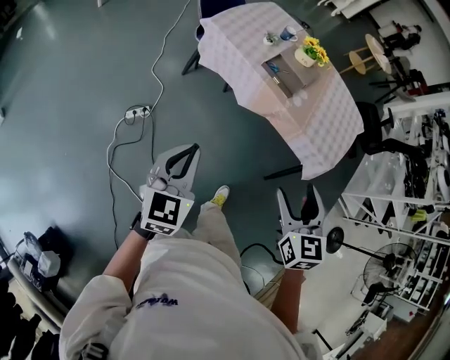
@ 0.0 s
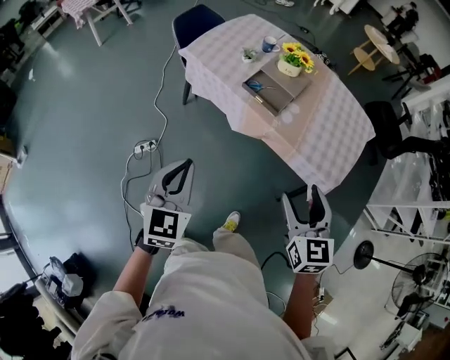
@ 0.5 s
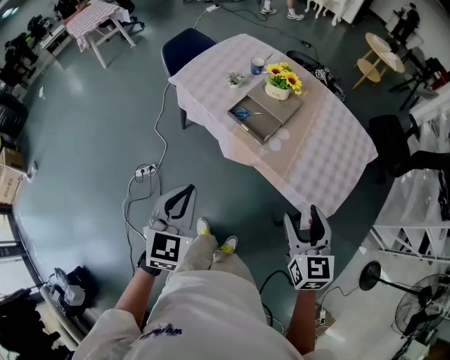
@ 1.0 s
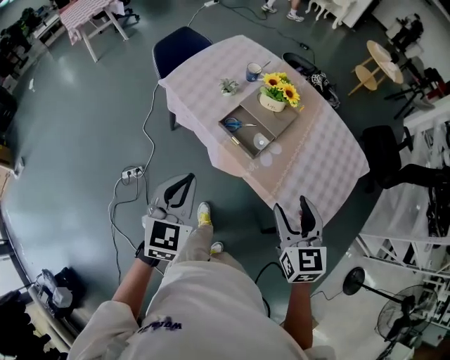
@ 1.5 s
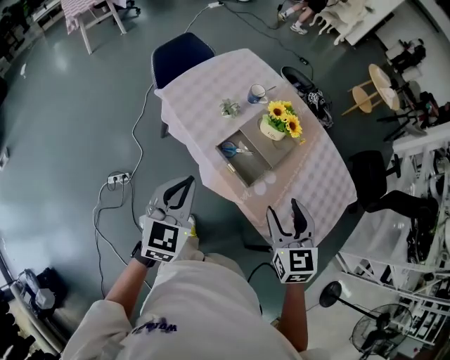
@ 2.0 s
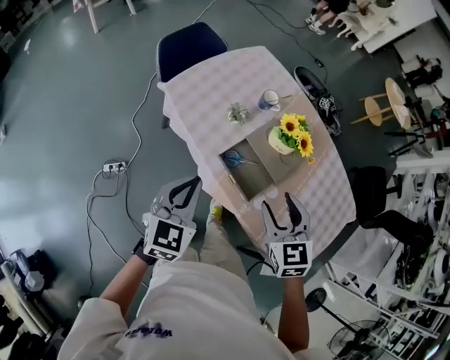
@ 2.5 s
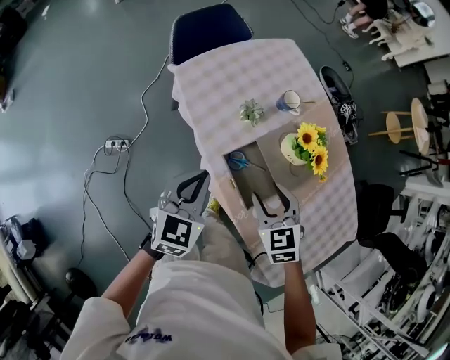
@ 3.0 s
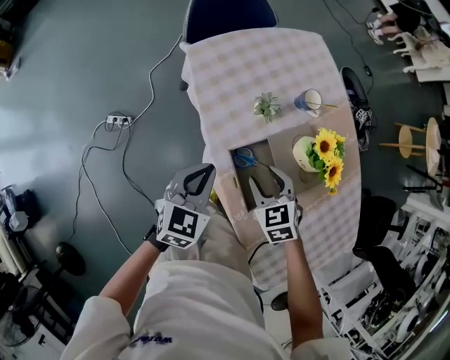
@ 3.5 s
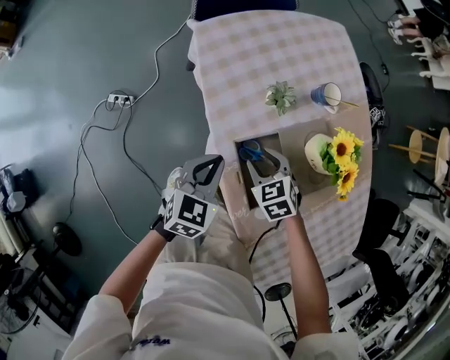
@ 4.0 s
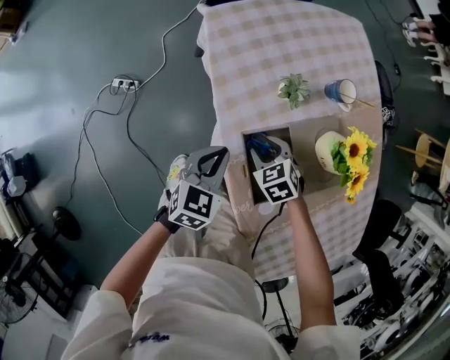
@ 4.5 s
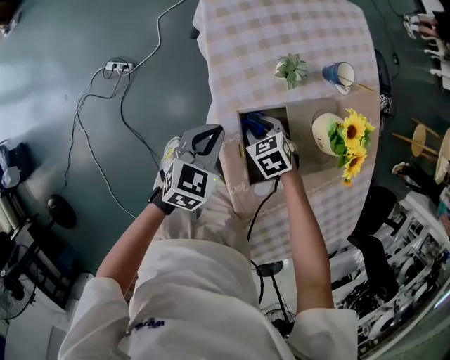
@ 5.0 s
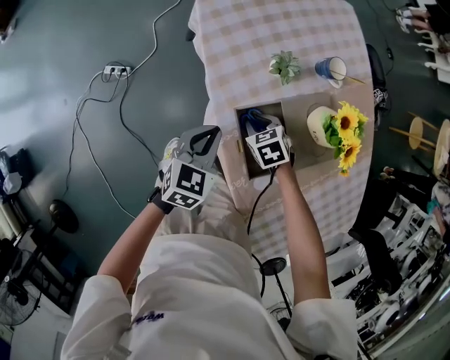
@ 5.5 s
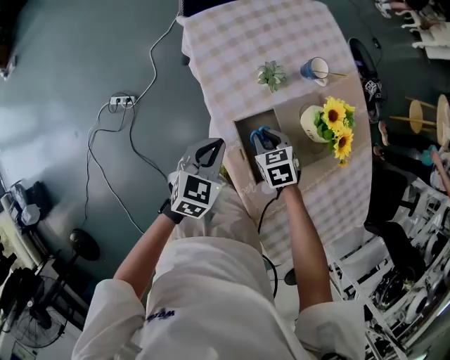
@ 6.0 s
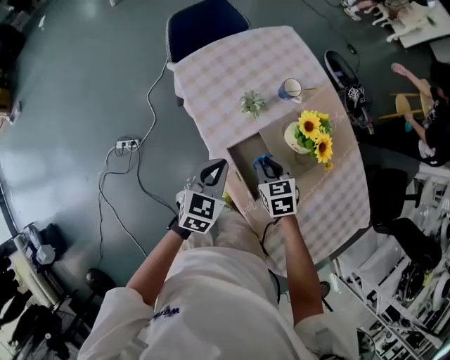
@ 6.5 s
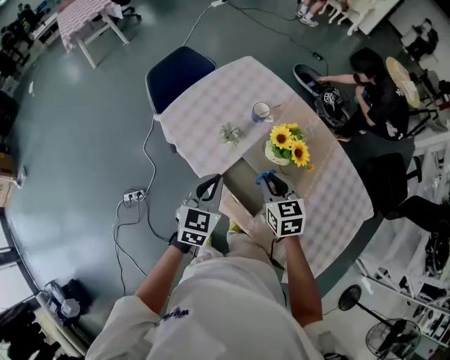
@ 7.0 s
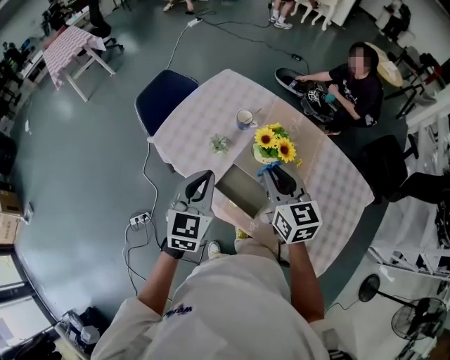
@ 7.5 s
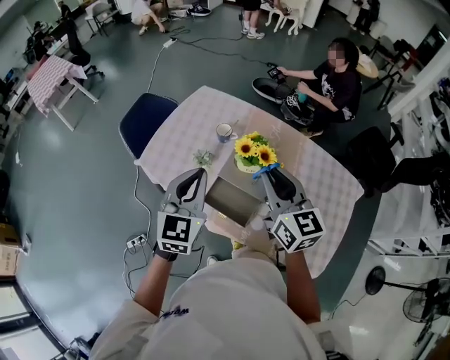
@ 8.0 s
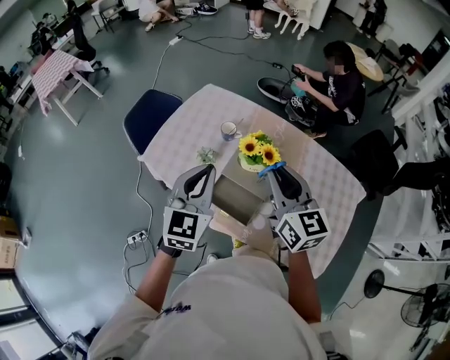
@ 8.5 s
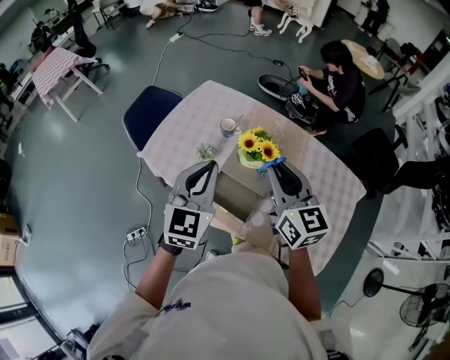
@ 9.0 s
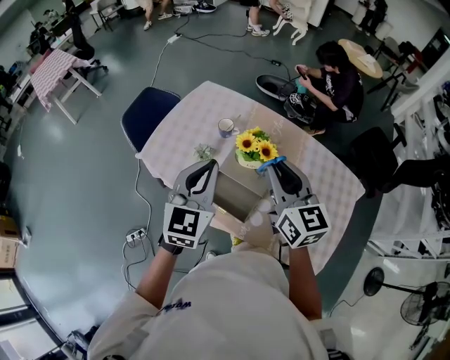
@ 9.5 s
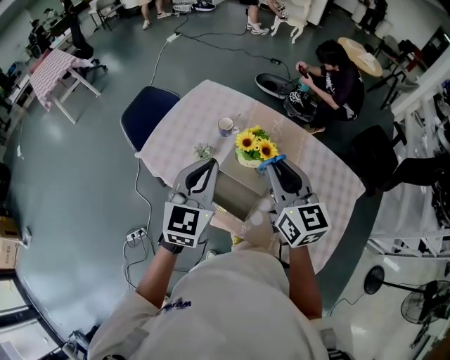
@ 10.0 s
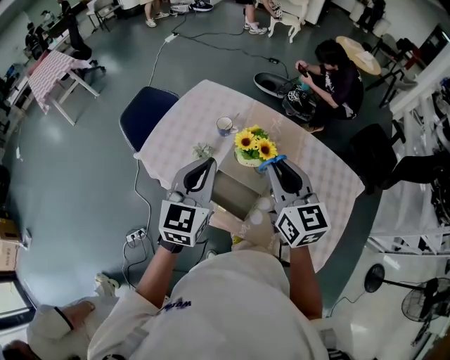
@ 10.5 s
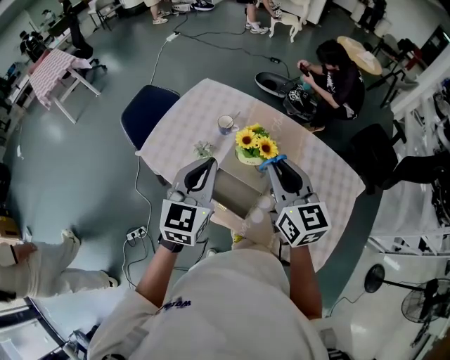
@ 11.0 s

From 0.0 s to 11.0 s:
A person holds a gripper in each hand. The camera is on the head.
From 0.0 s to 2.0 s: Both grippers are carried forward and to the right, about 40 cm.
From 2.0 s to 3.5 s: The grippers both shift downward and forward by roughly 25 cm. The right gripper changes its angle by some 40 degrees. Meanwhile the left gripper changes its angle by approximately 20 degrees.
From 3.5 s to 5.5 s: The left gripper moves downward, roughly 10 cm, while the right gripper moves downward, approximately 15 cm.
From 5.5 s to 7.5 s: The grippers both shift upward by approximately 35 cm. The left gripper turns by about 30 degrees. Meanwhile the right gripper tilts its fingers about 50 degrees upward.
From 7.5 s to 9.0 s: The left gripper heads upward and to the right, covering approximately 10 cm. Meanwhile the right gripper is displaced upward by some 5 cm.
From 9.0 s to 11.0 s: The grippers stay close to where they were, moving slightly.

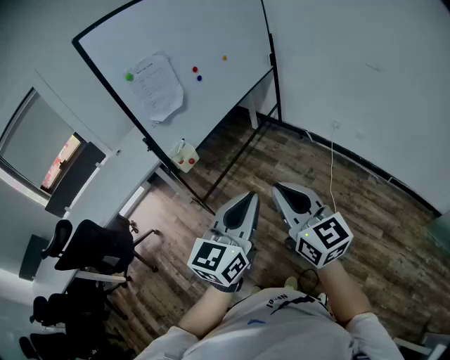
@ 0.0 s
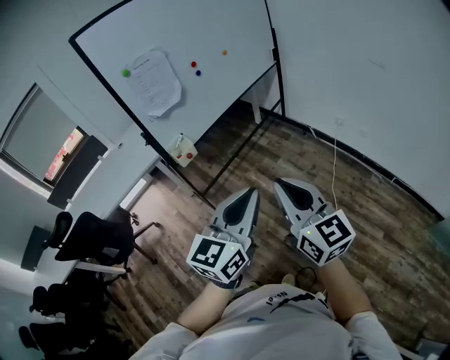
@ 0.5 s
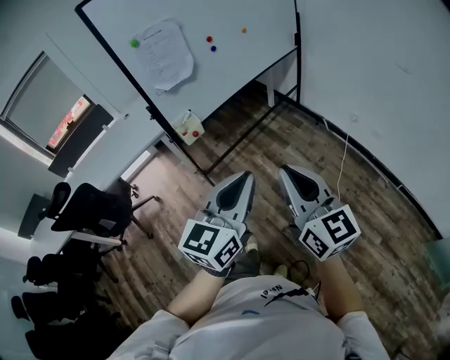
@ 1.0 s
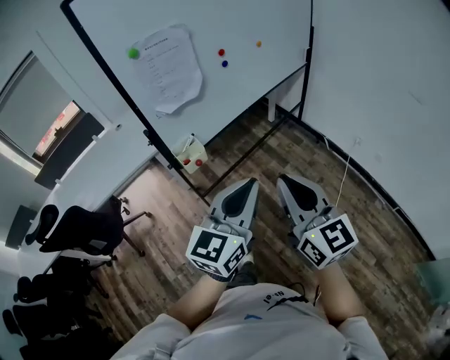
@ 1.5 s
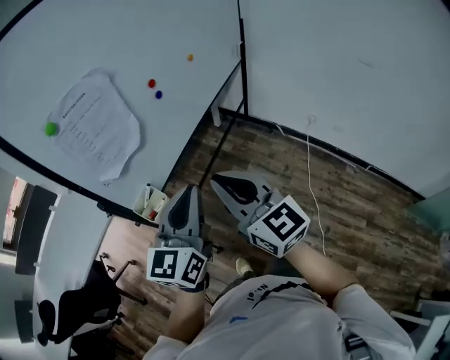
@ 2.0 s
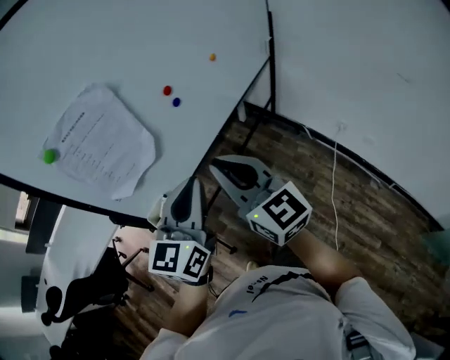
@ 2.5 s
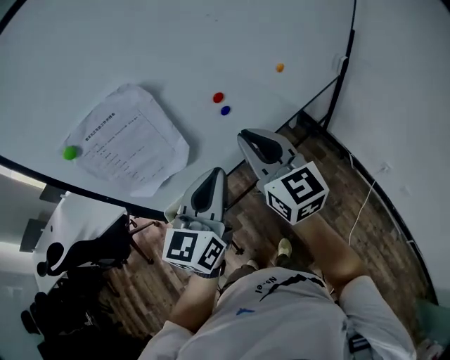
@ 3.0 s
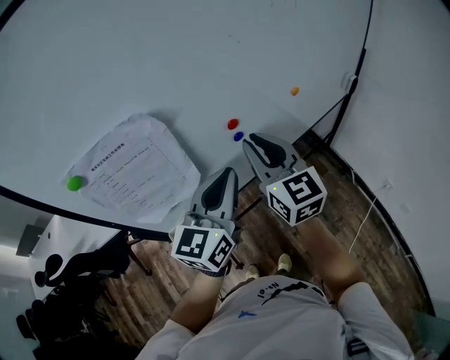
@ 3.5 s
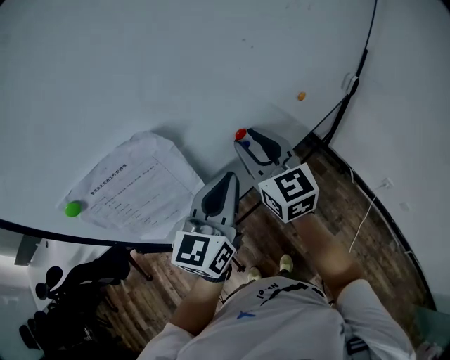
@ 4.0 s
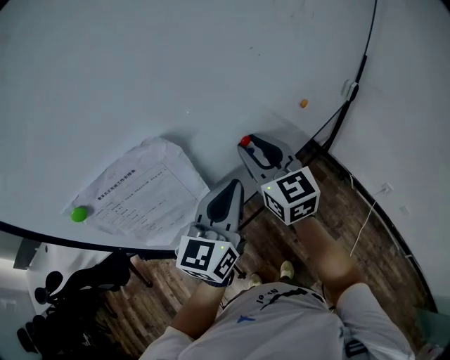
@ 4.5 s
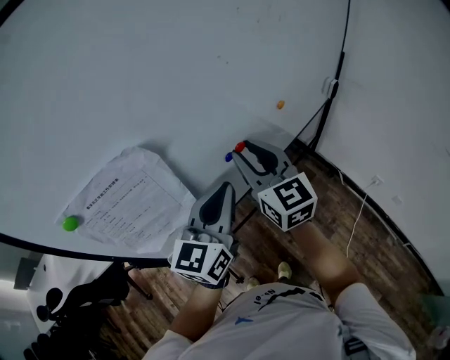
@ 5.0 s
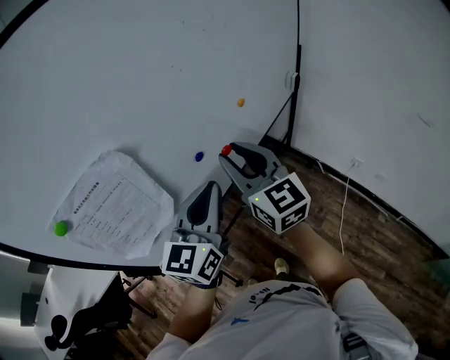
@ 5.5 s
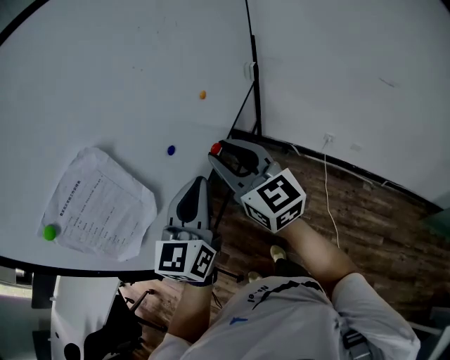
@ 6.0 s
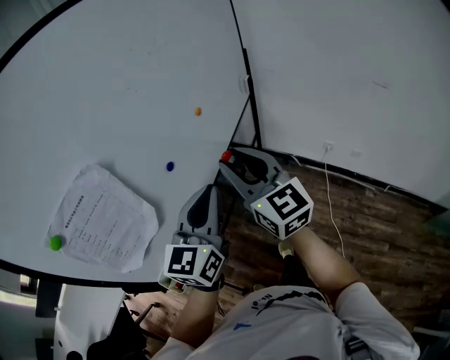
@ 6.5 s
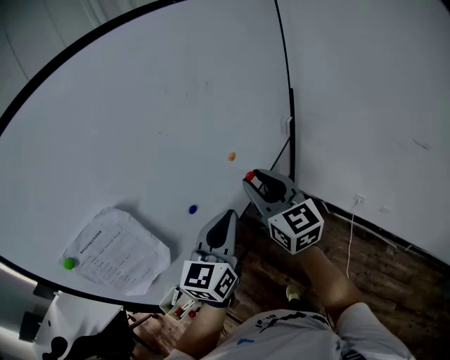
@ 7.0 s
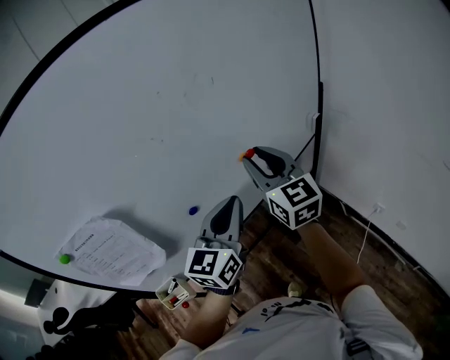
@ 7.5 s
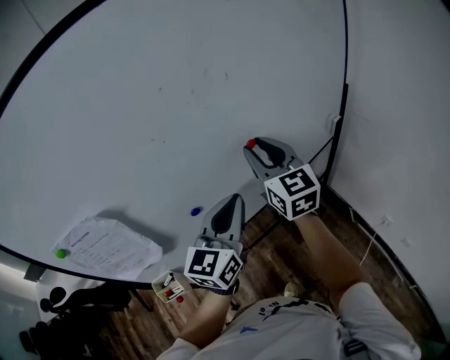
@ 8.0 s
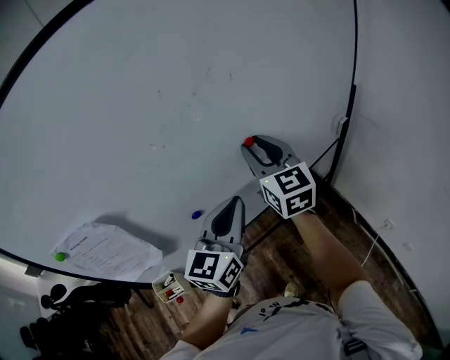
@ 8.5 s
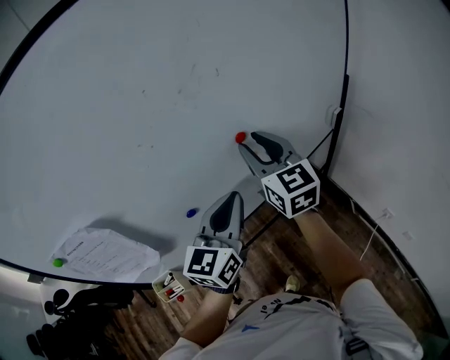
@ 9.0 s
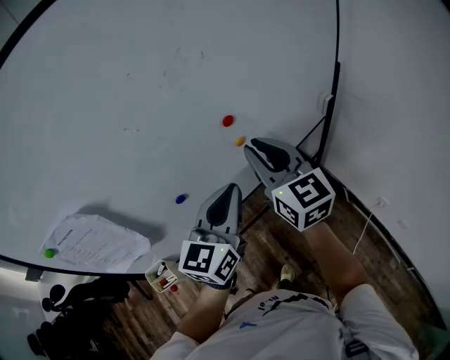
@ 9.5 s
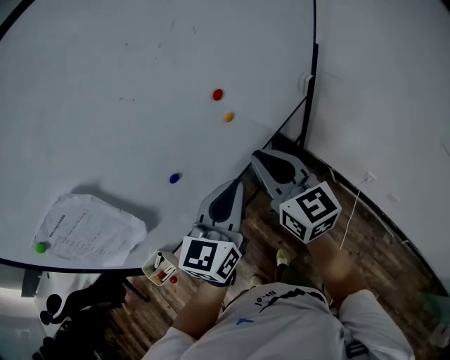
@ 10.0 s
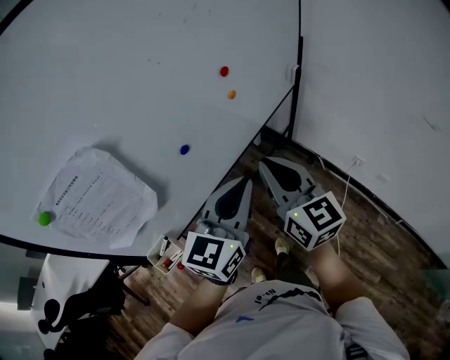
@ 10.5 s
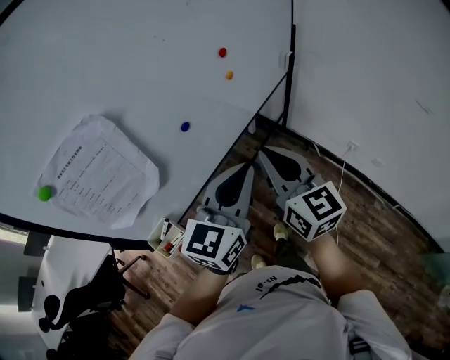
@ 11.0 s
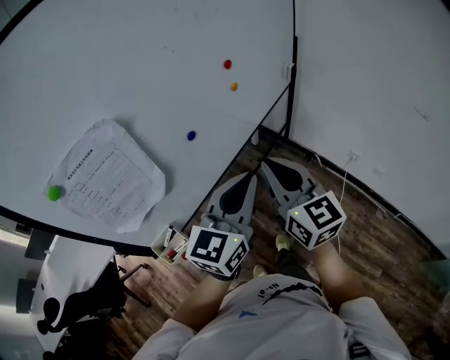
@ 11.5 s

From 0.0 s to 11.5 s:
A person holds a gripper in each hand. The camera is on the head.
From 0.0 s to 2.0 s: Both grippers move forward, roughly 30 cm.
From 2.0 s to 4.0 s: The two grippers go about 35 cm forward. The right gripper opens up.
From 4.0 s to 6.0 s: The right gripper heads backward and to the right, covering roughly 15 cm; the left gripper moves backward and to the right, about 10 cm.
From 6.0 s to 7.5 s: The left gripper is displaced forward and to the right by approximately 15 cm, while the right gripper shifts some 20 cm forward.
From 7.5 s to 9.5 s: The right gripper goes forward and returns, some 10 cm each way.
From 9.5 s to 11.5 s: Both grippers travel together backward, roughly 20 cm. The left gripper changes its angle by roughly 20 degrees.

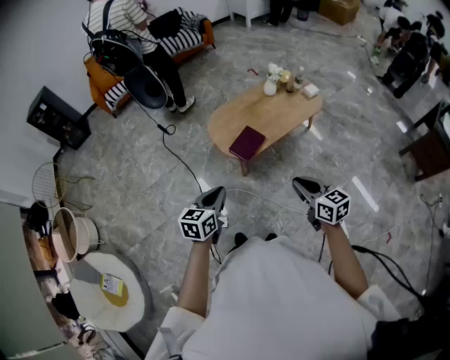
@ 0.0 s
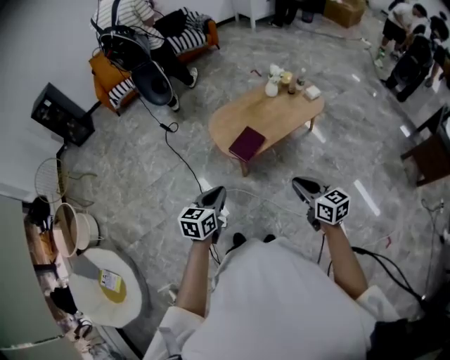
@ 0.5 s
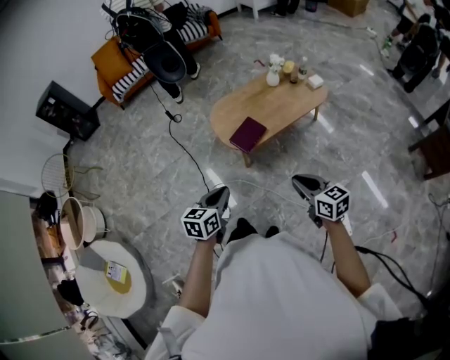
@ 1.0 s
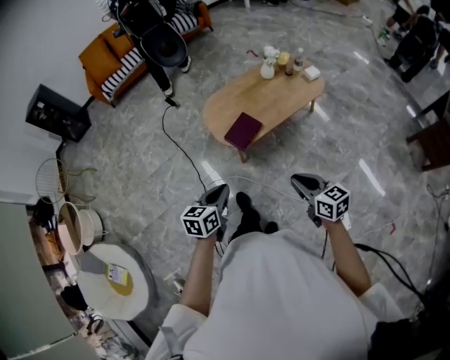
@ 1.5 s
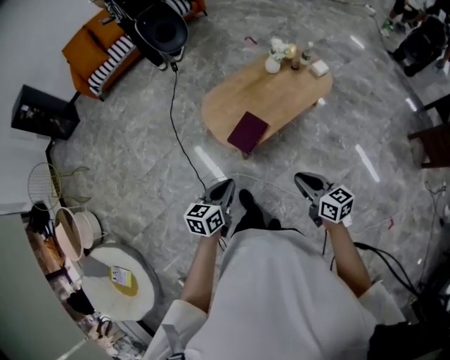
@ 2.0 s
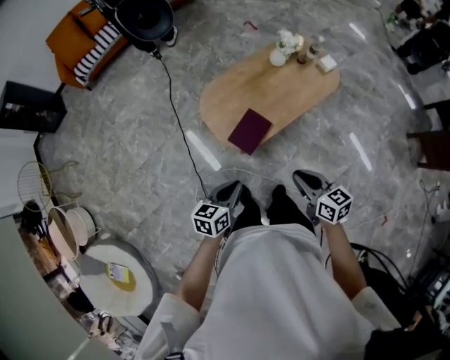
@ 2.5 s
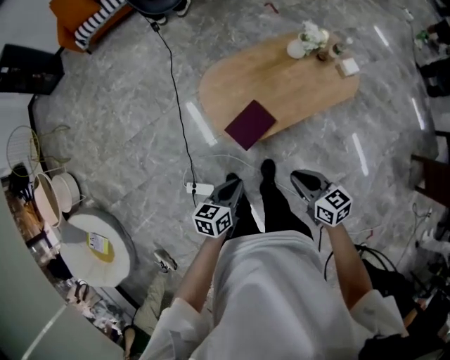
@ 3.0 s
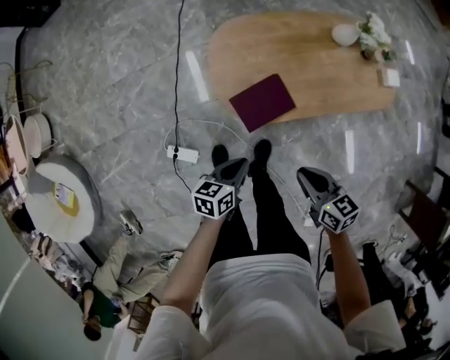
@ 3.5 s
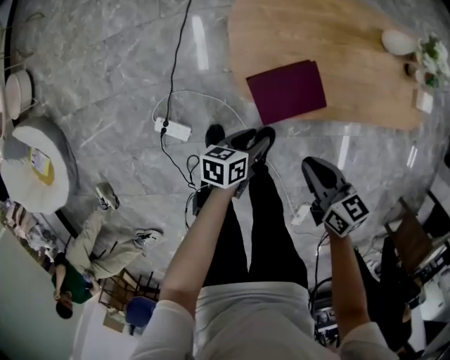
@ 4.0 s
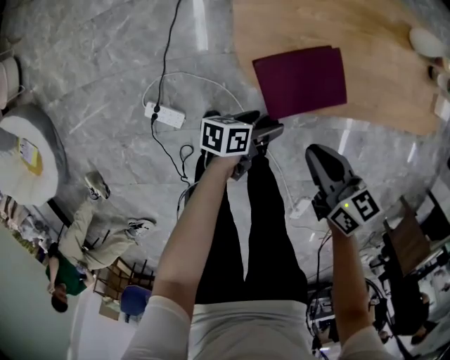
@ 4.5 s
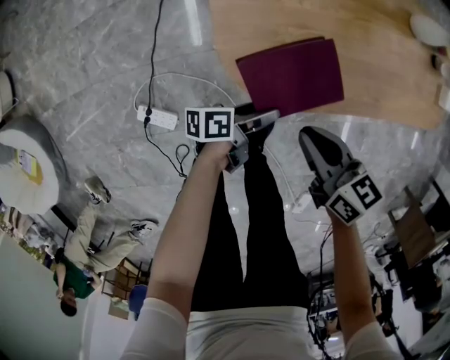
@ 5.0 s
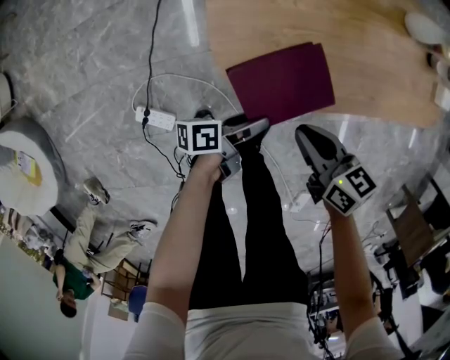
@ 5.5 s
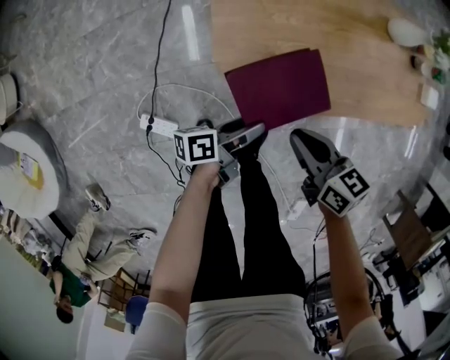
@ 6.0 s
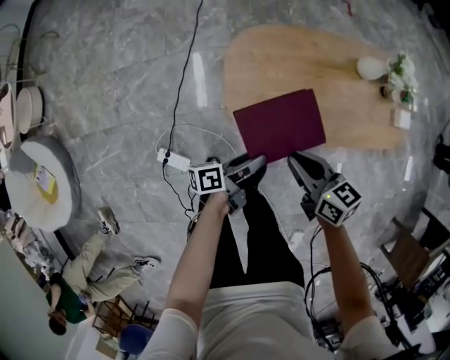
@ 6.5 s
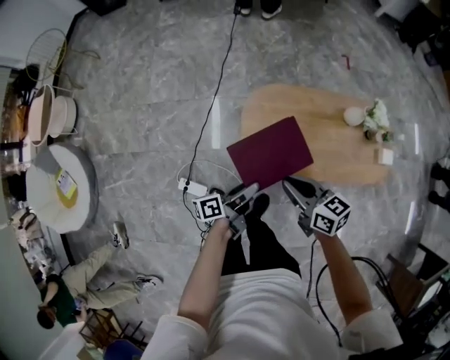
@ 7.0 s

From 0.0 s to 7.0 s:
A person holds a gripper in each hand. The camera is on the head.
From 0.0 s to 2.0 s: The right gripper shifts by about 15 cm.
From 2.0 s to 3.5 s: The right gripper goes roughly 20 cm downward, and turns by about 30 degrees.
From 3.5 s to 5.0 s: The right gripper moves downward, about 20 cm.
From 5.0 s to 7.0 s: The right gripper heads upward, covering some 30 cm.
